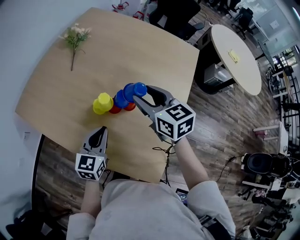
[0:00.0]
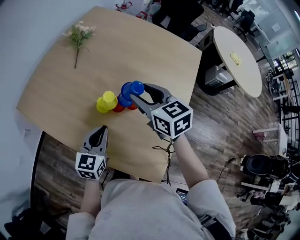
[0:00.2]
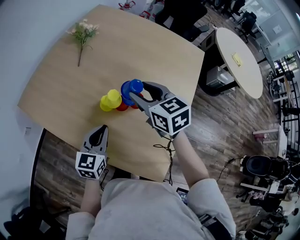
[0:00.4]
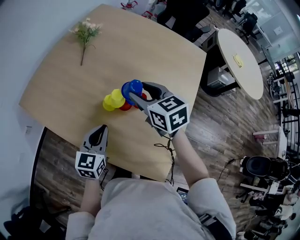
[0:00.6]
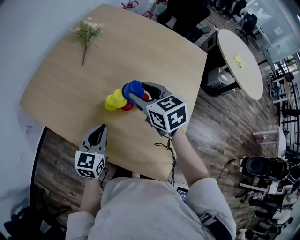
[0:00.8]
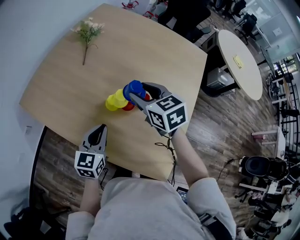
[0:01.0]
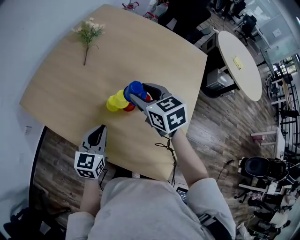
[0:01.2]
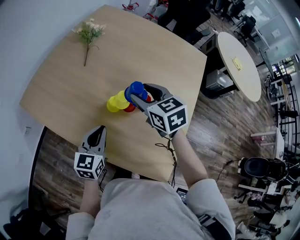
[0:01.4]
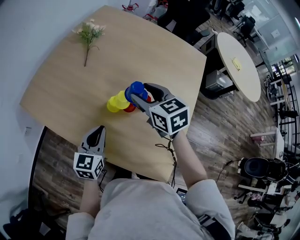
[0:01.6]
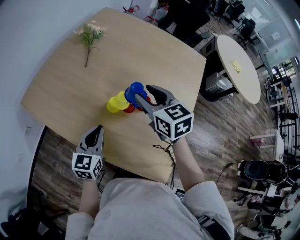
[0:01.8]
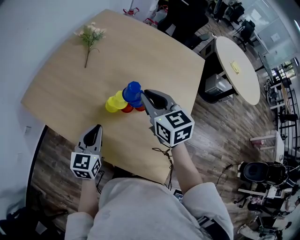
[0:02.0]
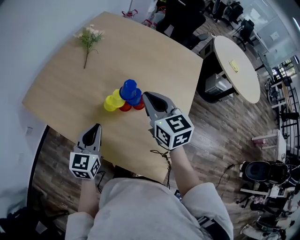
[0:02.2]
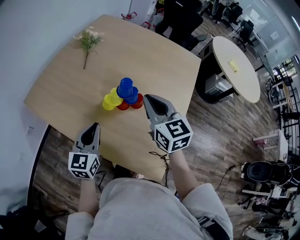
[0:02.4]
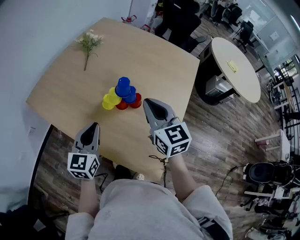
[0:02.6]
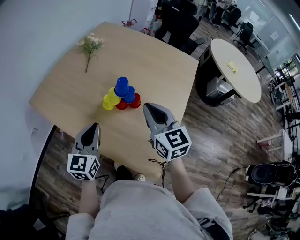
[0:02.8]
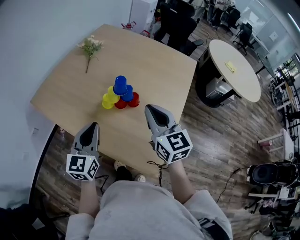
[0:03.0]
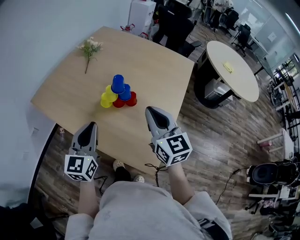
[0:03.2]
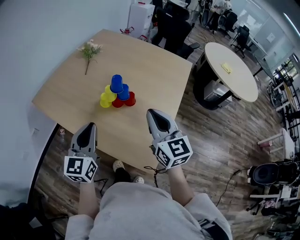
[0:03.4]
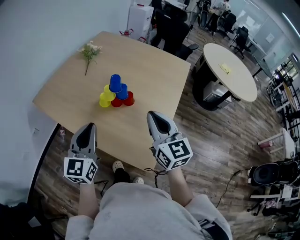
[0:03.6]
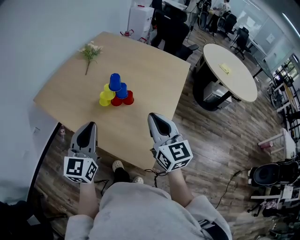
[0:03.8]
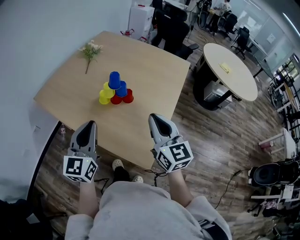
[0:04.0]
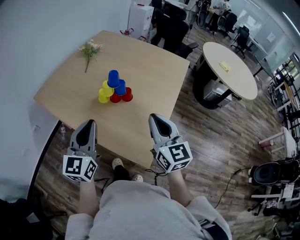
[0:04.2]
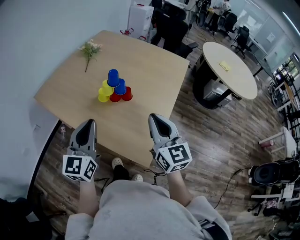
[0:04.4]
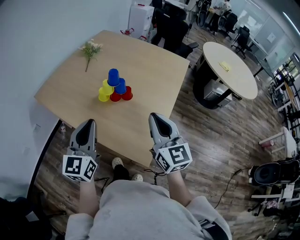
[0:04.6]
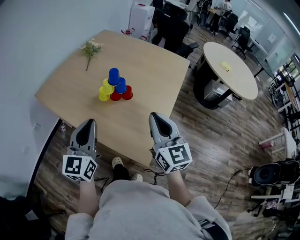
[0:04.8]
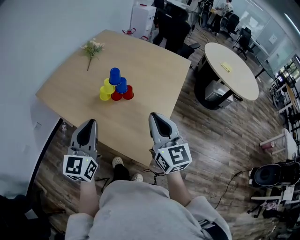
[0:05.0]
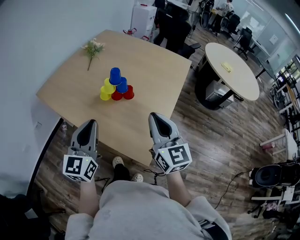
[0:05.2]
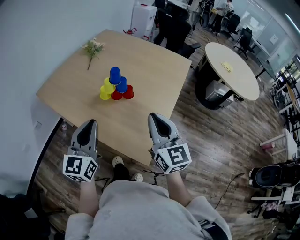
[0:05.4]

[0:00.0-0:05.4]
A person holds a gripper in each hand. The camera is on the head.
0.0 to 1.4 s: Both grippers move to the left, roughly 10 cm.
1.4 to 2.8 s: The right gripper goes approximately 15 cm backward, upward and to the right, swivels approximately 20 degrees, and closes; the left gripper moves upward and backward, approximately 10 cm.
2.8 to 4.0 s: The left gripper heads backward and upward, covering approximately 10 cm. Meanwhile the right gripper heads backward and to the right, covering approximately 15 cm.
4.0 to 5.4 s: The grippers stay close to where they were, moving slightly.

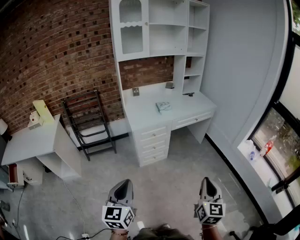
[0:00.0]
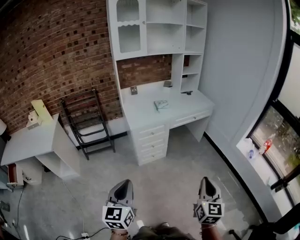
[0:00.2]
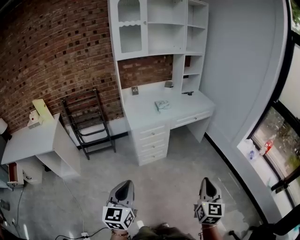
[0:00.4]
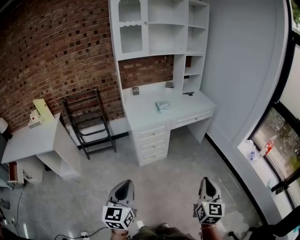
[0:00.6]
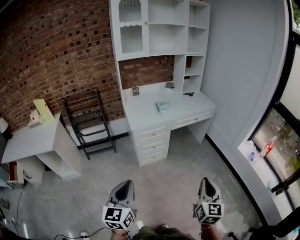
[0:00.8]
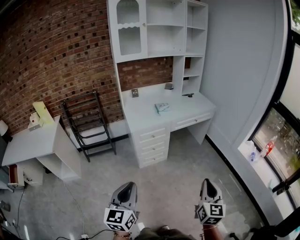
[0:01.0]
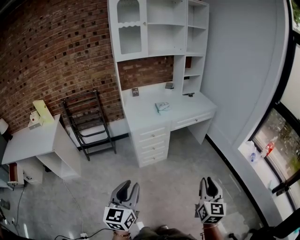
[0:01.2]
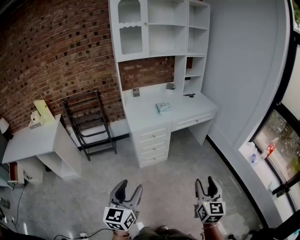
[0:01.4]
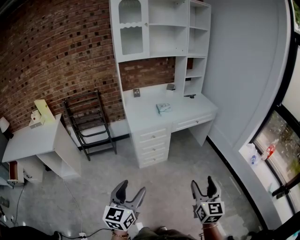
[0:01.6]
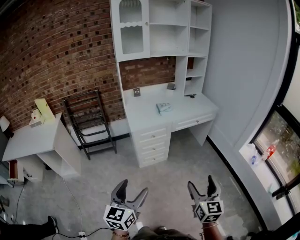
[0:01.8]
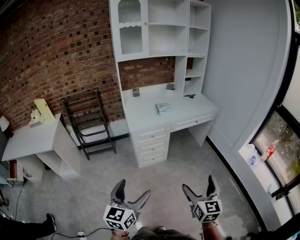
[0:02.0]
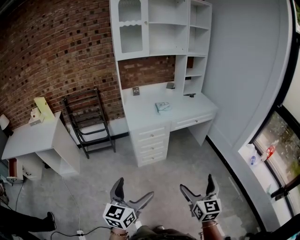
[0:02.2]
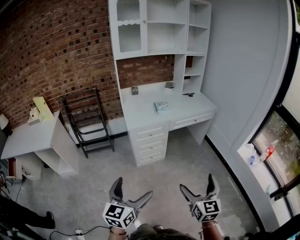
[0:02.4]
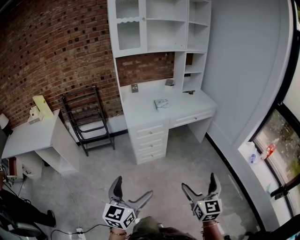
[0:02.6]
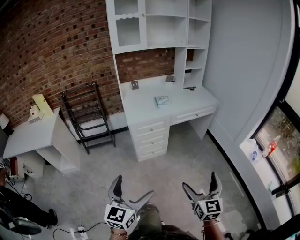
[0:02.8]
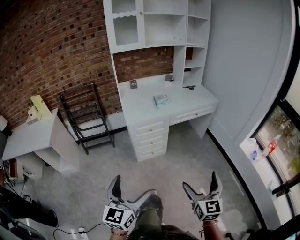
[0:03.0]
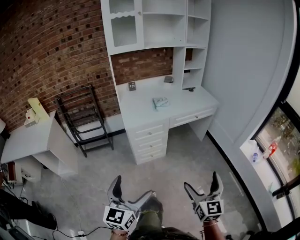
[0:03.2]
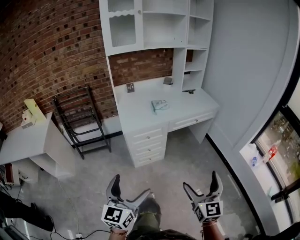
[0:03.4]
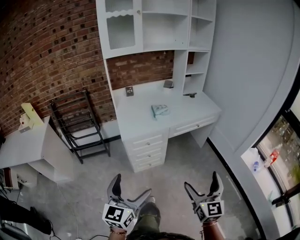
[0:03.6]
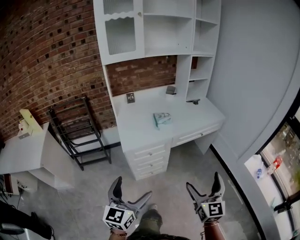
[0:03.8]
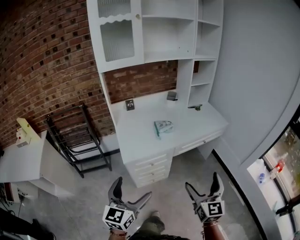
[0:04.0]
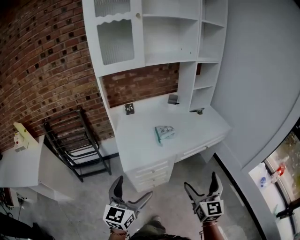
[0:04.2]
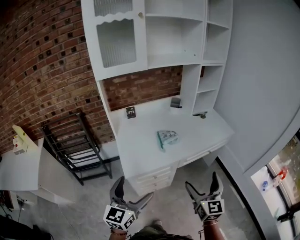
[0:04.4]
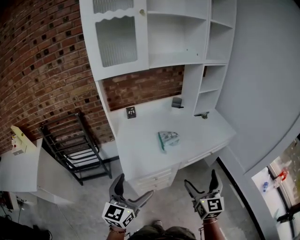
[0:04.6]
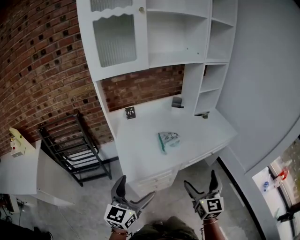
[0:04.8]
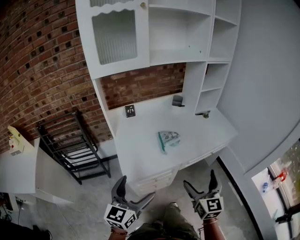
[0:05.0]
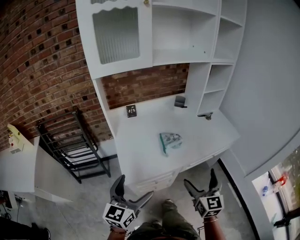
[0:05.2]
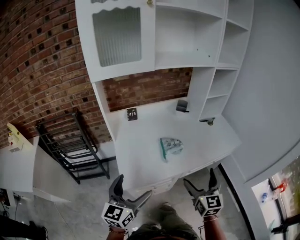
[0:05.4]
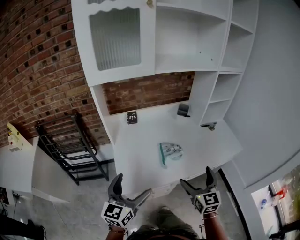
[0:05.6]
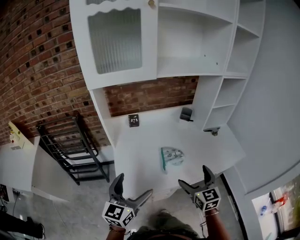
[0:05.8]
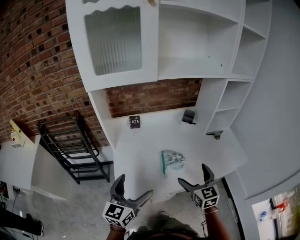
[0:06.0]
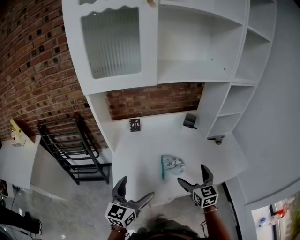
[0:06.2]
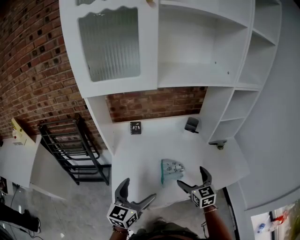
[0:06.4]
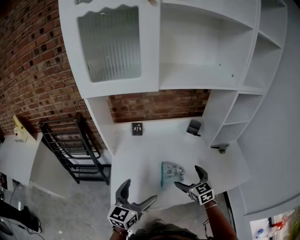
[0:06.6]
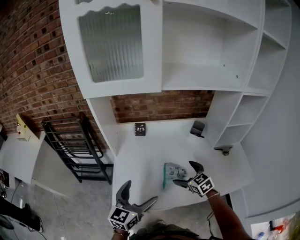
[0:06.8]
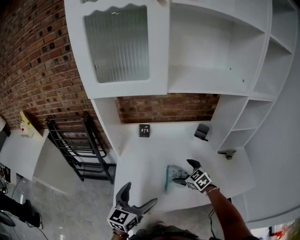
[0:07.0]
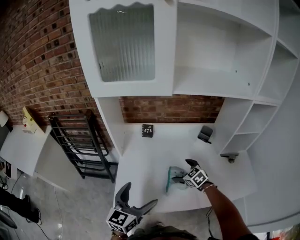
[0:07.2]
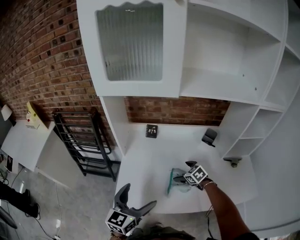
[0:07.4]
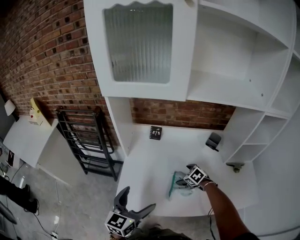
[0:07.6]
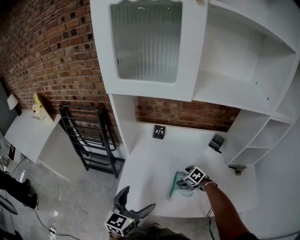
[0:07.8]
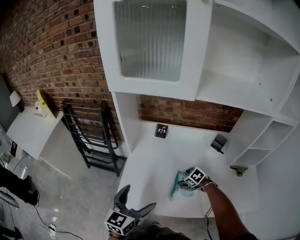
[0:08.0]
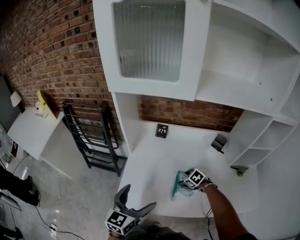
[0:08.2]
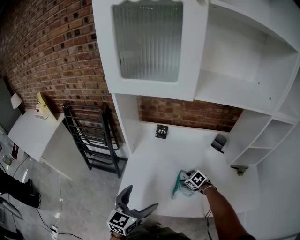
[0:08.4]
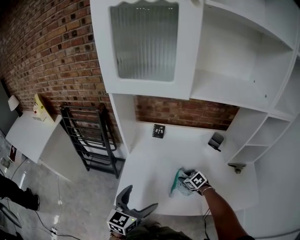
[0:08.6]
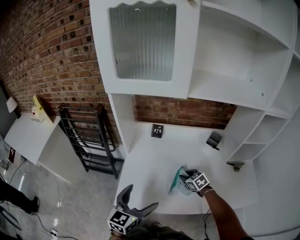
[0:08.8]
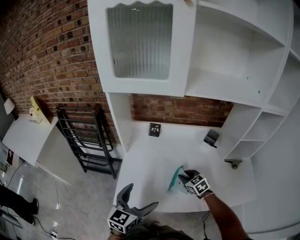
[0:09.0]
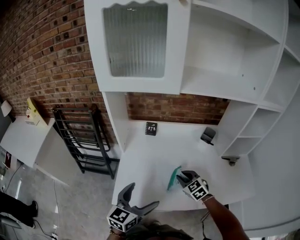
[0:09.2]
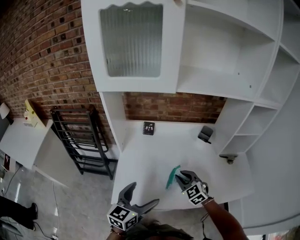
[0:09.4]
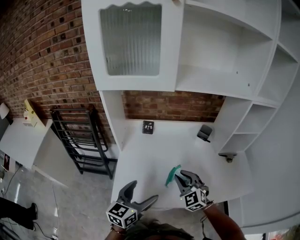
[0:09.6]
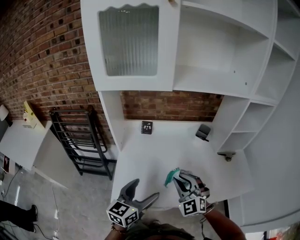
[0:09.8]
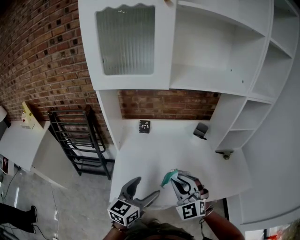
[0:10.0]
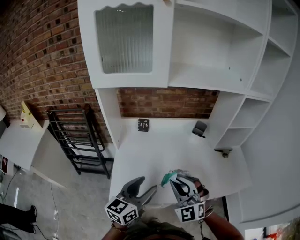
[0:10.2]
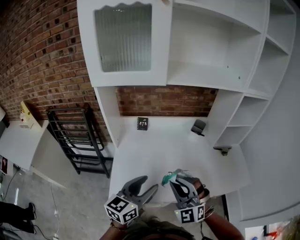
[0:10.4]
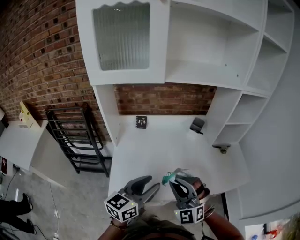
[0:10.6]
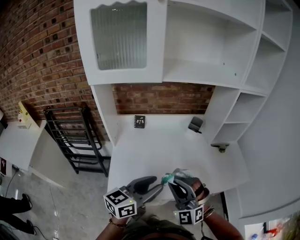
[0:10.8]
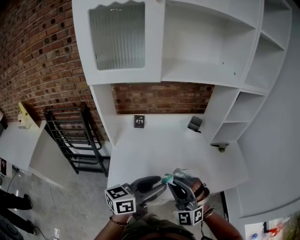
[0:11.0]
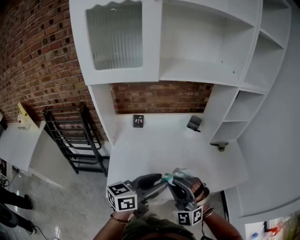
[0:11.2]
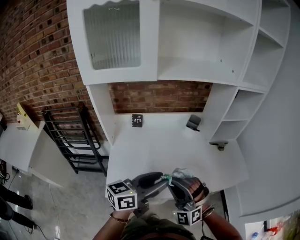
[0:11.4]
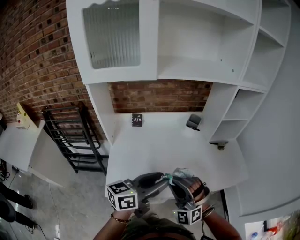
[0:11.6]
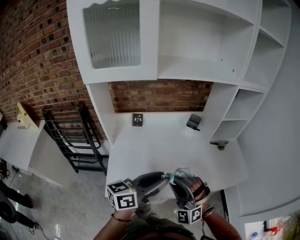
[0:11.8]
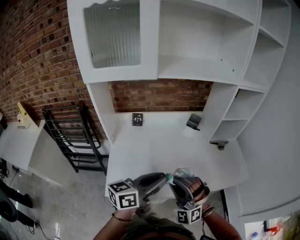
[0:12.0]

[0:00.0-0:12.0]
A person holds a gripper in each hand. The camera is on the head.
0.0 to 1.6 s: The right gripper opens. The left gripper shifts roughly 5 cm to the right, and opens up.
1.6 to 3.0 s: The left gripper opens. The right gripper opens.
3.0 to 4.4 s: Both grippers are carried forward, some 40 cm.
4.4 to 6.0 s: The grippers both shift forward by roughly 25 cm. The right gripper rotates about 30 degrees.
6.0 to 7.6 s: The left gripper changes place by roughly 5 cm; the right gripper shifts by approximately 30 cm, and angles its fingers downward, by about 40 degrees.
7.6 to 9.0 s: The right gripper moves upward, about 5 cm, turns by some 20 degrees, and closes up.
9.0 to 10.4 s: The right gripper travels upward and backward by approximately 25 cm, and tilts its fingers approximately 30 degrees upward. Meanwhile the left gripper goes about 5 cm to the right, and closes up.
10.4 to 12.0 s: The left gripper is displaced to the right by approximately 5 cm, and changes its angle by some 30 degrees.

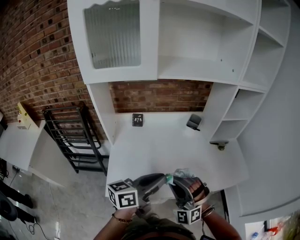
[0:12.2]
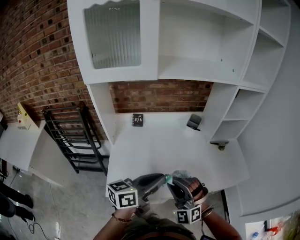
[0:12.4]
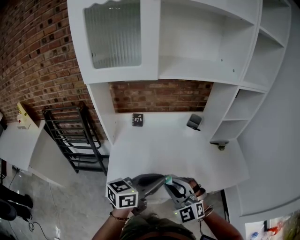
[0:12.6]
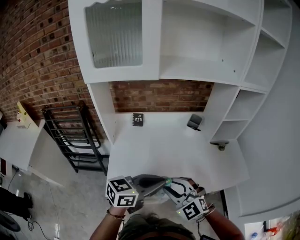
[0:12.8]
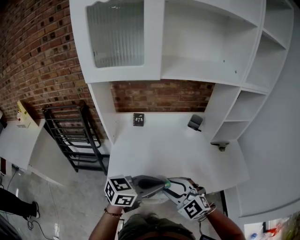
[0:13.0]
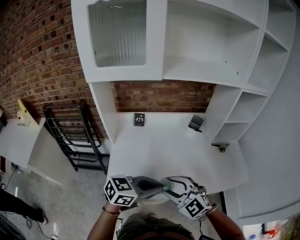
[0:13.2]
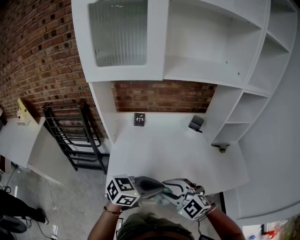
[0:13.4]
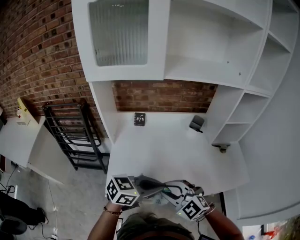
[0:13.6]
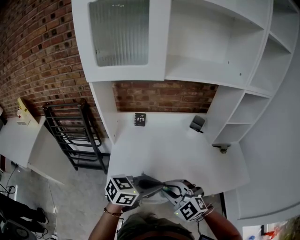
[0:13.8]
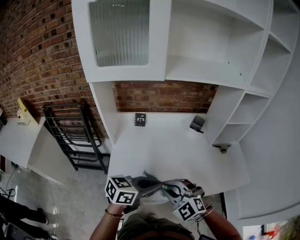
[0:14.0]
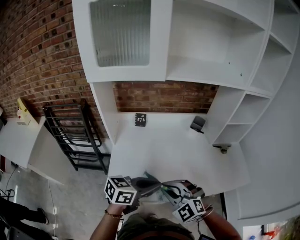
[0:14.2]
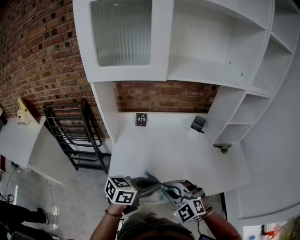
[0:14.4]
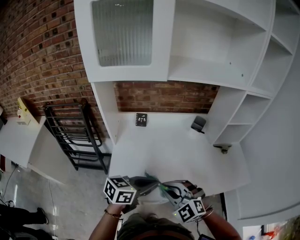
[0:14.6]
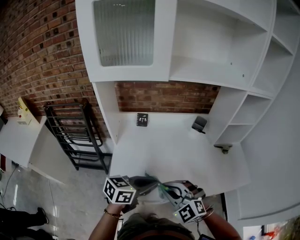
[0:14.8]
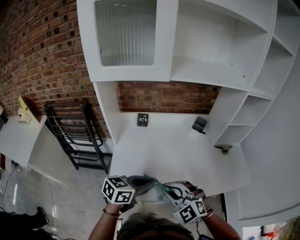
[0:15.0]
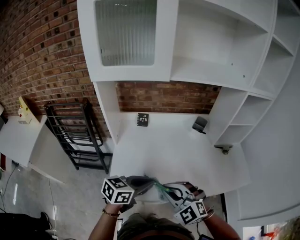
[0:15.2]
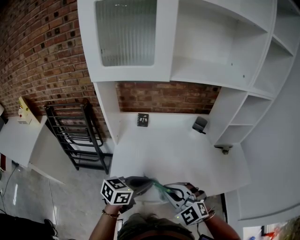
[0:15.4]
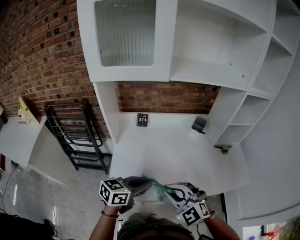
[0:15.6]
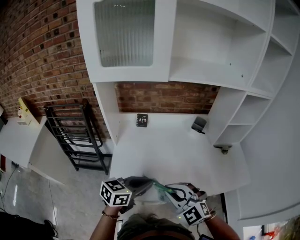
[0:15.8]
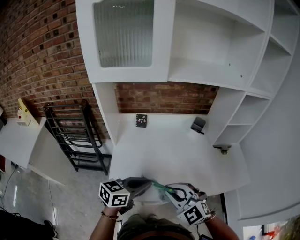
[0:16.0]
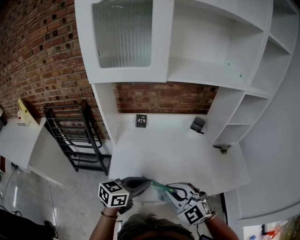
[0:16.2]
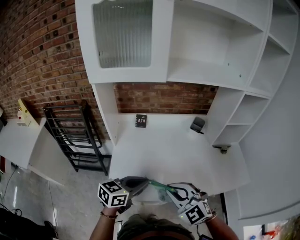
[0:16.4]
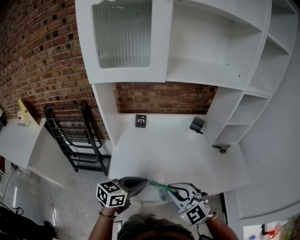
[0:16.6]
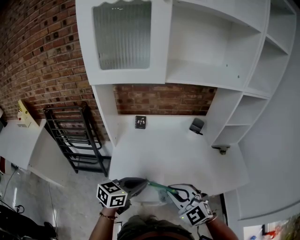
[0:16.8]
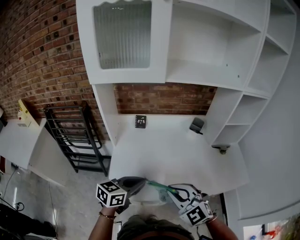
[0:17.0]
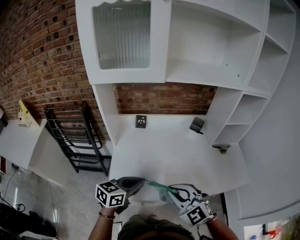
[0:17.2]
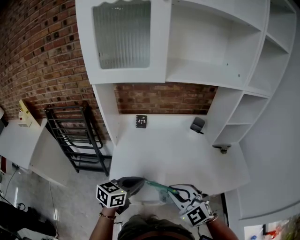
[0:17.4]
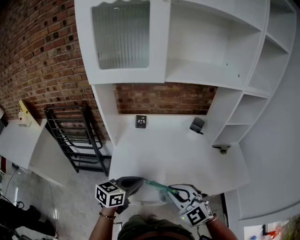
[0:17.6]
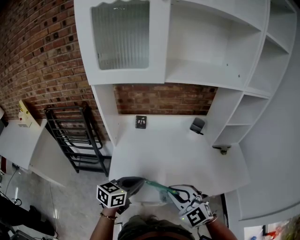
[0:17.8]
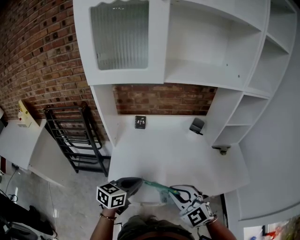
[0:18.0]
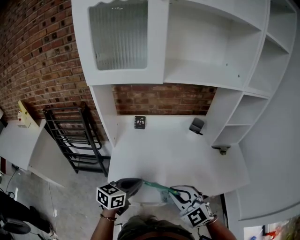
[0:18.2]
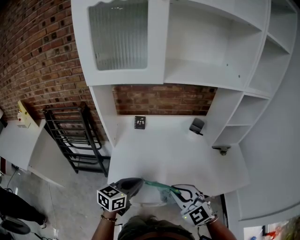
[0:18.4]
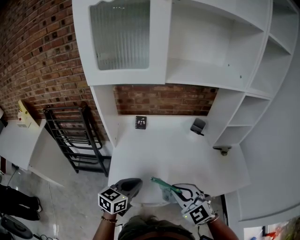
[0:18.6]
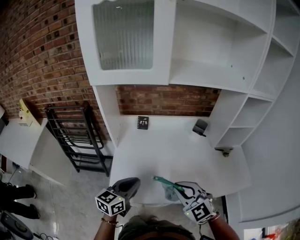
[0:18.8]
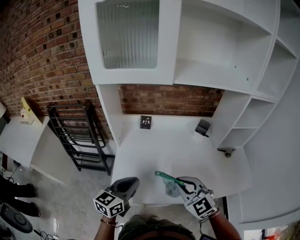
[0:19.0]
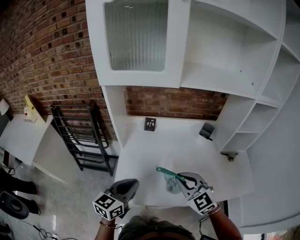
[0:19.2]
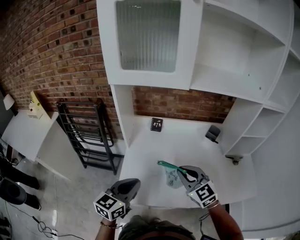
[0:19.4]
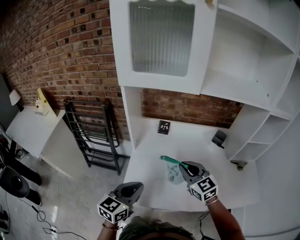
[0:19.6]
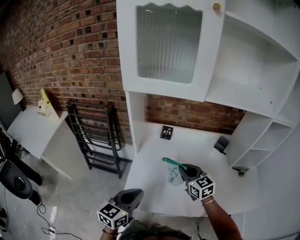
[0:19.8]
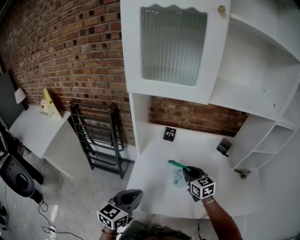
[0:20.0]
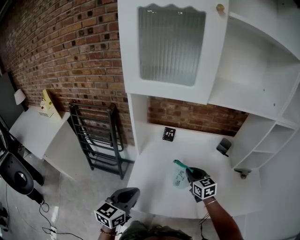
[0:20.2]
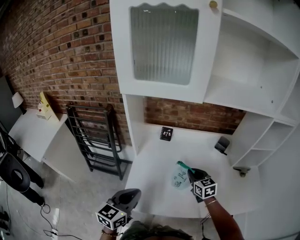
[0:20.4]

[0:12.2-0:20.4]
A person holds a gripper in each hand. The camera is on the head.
12.2 to 13.8 s: The left gripper turns by about 30 degrees; the right gripper shifts by about 5 cm, and turns by some 40 degrees.
13.8 to 15.4 s: The left gripper goes some 5 cm to the left.
15.4 to 17.2 s: There are only small adjustments of the grippers.
17.2 to 18.8 s: The grippers move only a little.
18.8 to 20.4 s: The right gripper goes roughly 20 cm forward and downward, and rotates about 30 degrees. Meanwhile the left gripper goes approximately 5 cm to the left.
